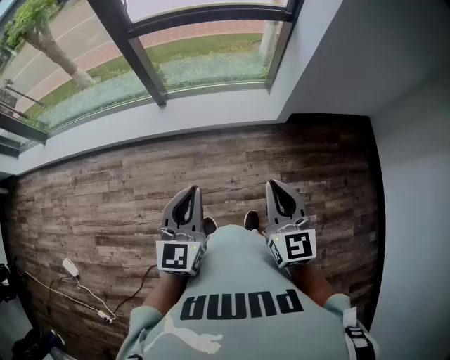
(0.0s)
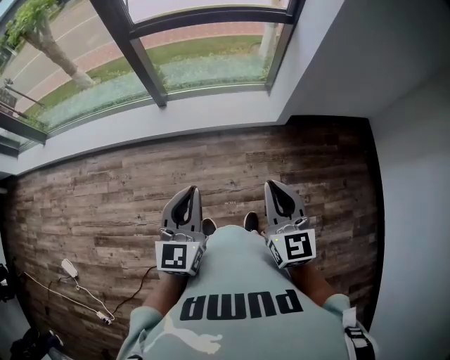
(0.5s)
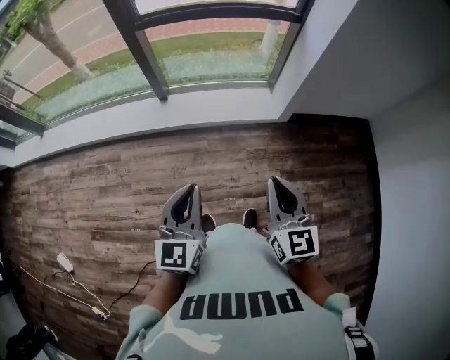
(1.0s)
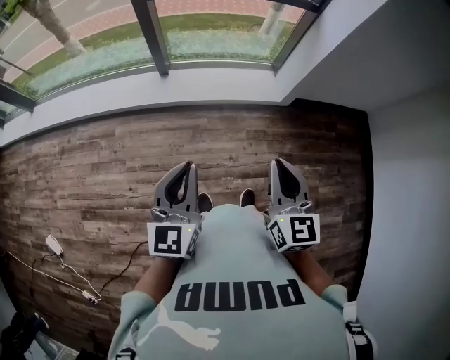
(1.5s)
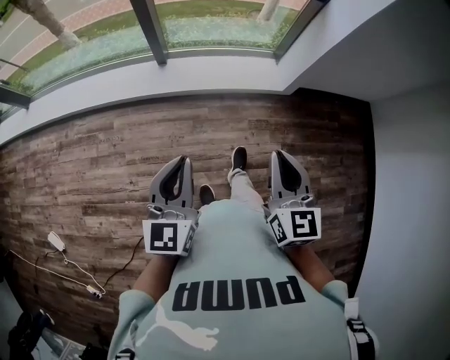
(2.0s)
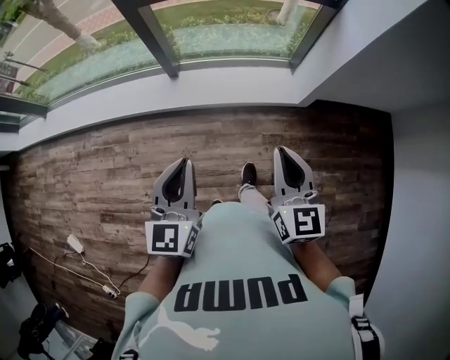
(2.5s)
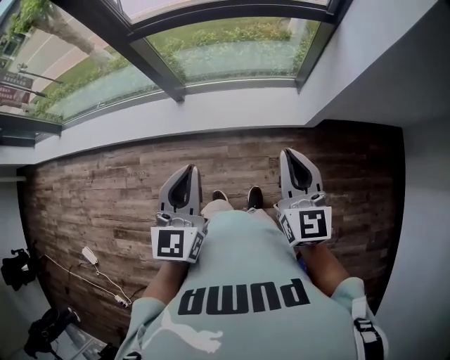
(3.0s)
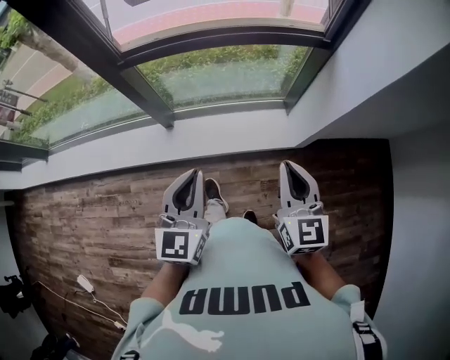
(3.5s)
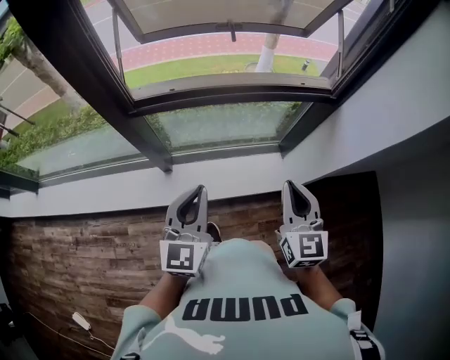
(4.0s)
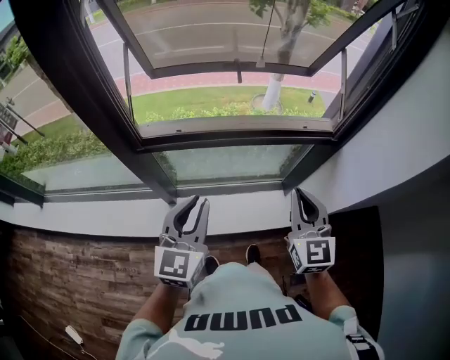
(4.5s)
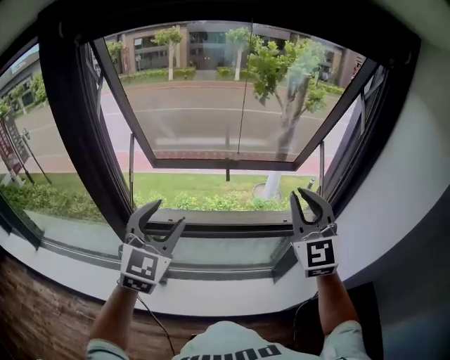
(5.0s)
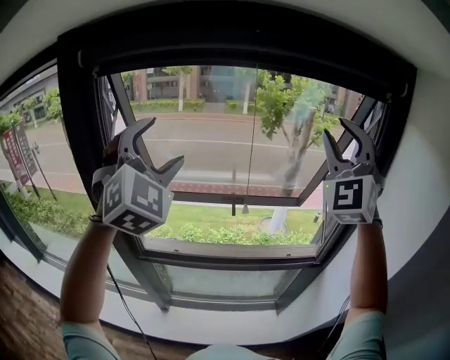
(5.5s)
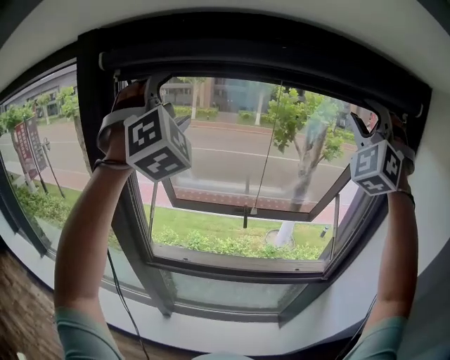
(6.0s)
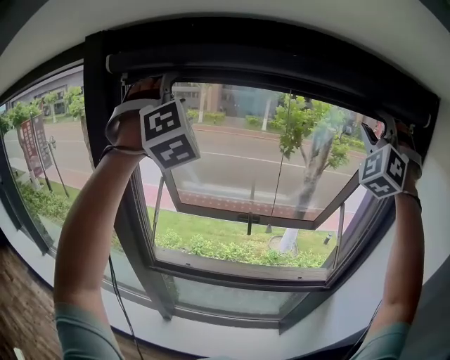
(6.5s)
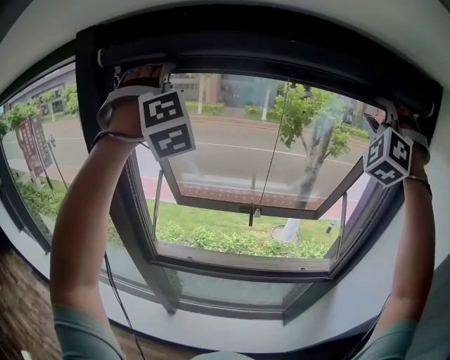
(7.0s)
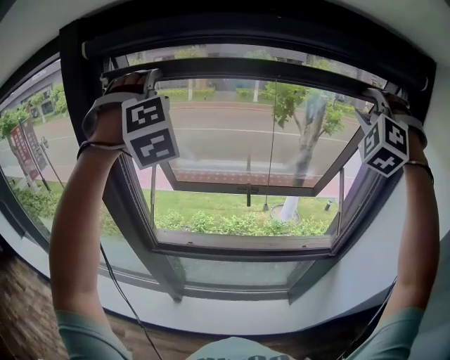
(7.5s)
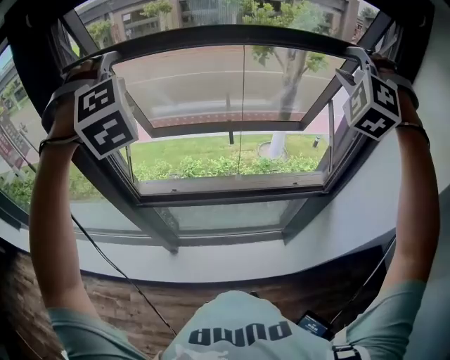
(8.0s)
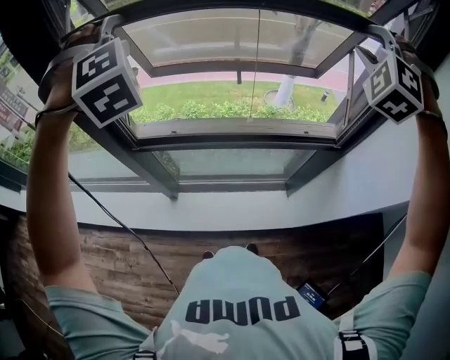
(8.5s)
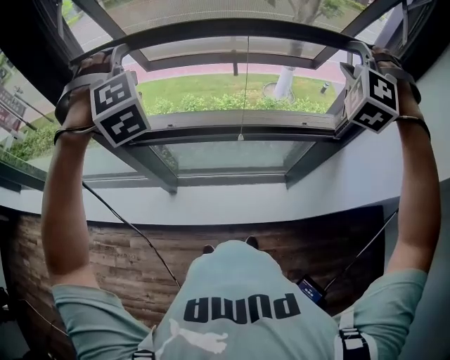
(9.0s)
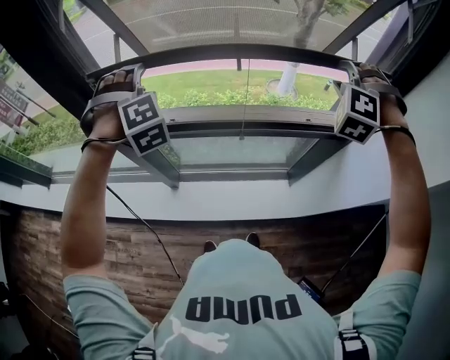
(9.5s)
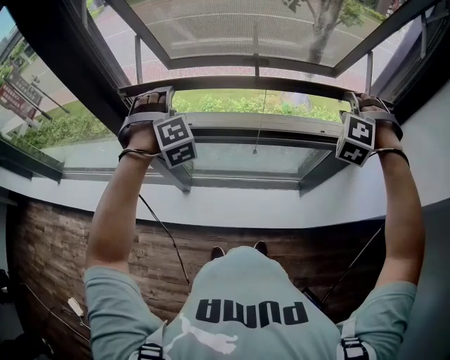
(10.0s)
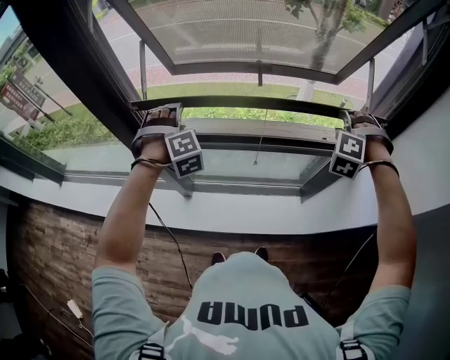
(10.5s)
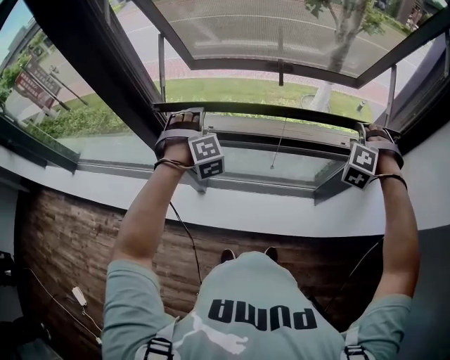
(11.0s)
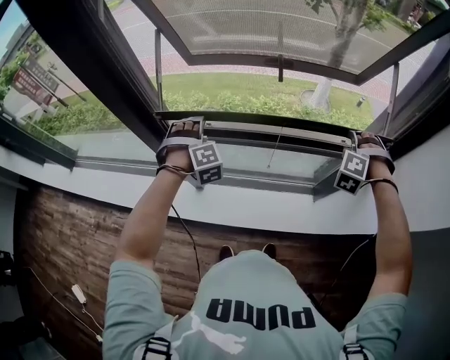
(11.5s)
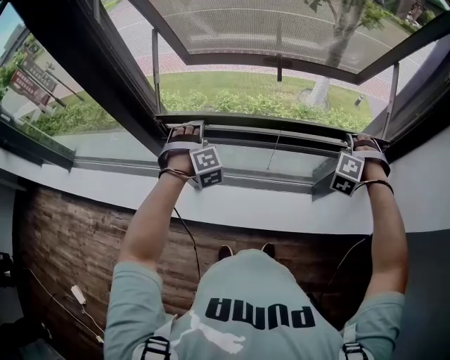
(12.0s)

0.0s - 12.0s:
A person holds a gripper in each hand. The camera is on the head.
0.0s - 2.0s: The grippers both shift to the left by about 10 cm.
2.0s - 4.0s: The two grippers travel together, forward, some 50 cm.
4.0s - 6.0s: The grippers both shift upward and forward by some 60 cm. The left gripper rolls clockwise, seen from behind, by roughly 70 degrees, and opens, while the right gripper rolls counterclockwise, seen from behind, by roughly 80 degrees, and opens.
6.0s - 8.0s: The grippers both shift downward by some 15 cm. The left gripper swivels some 40 degrees. Meanwhile the right gripper angles its fingers downward, by approximately 30 degrees.
8.0s - 10.0s: Both grippers travel together downward, about 30 cm. The right gripper rotates some 30 degrees.
10.0s - 12.0s: The two grippers go about 15 cm downward.

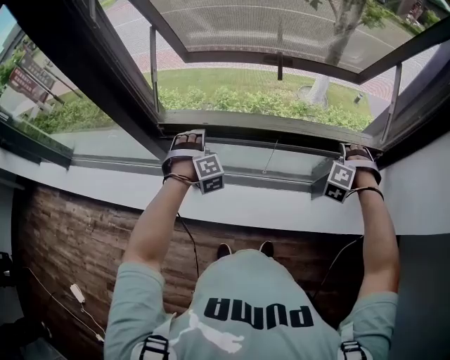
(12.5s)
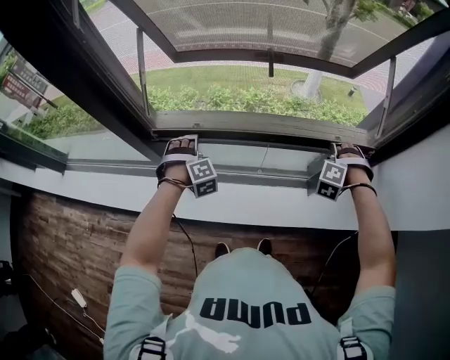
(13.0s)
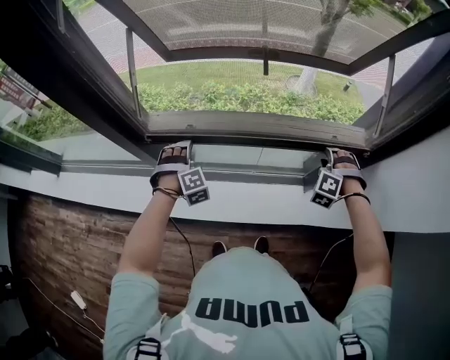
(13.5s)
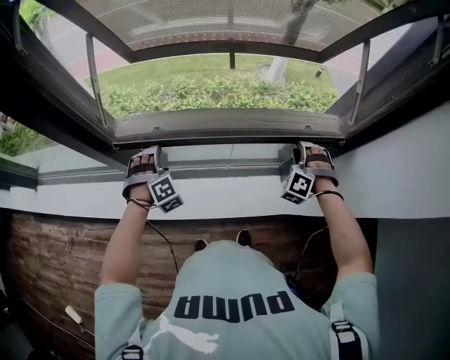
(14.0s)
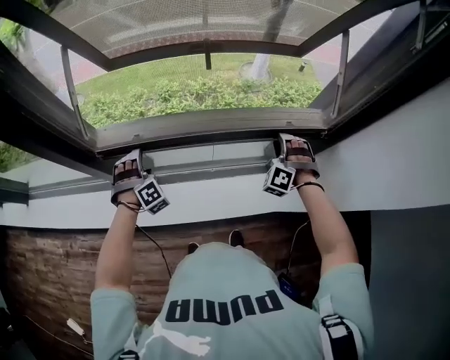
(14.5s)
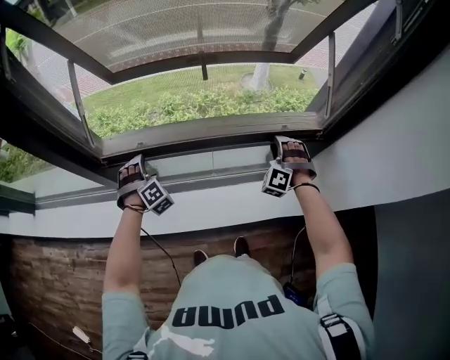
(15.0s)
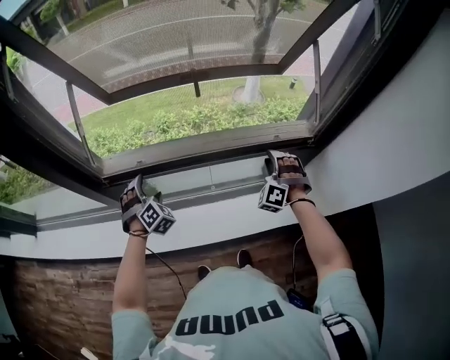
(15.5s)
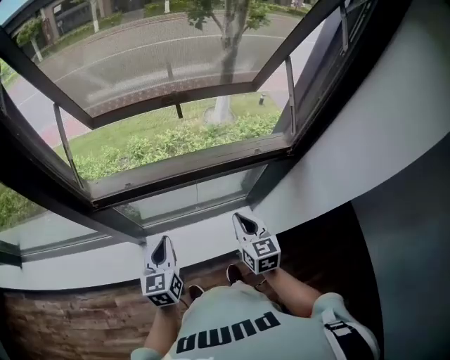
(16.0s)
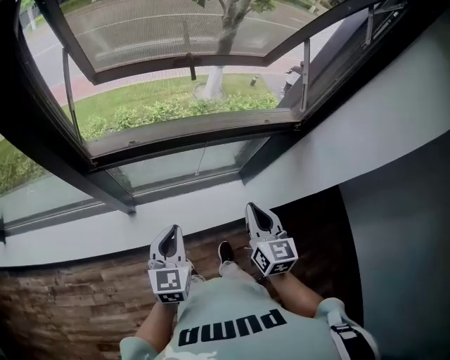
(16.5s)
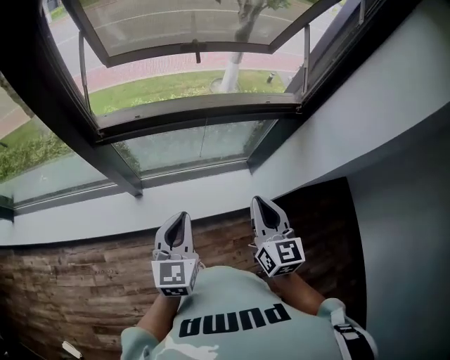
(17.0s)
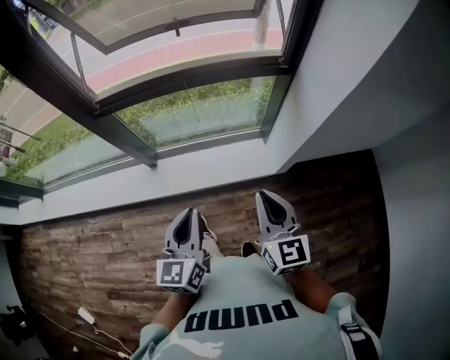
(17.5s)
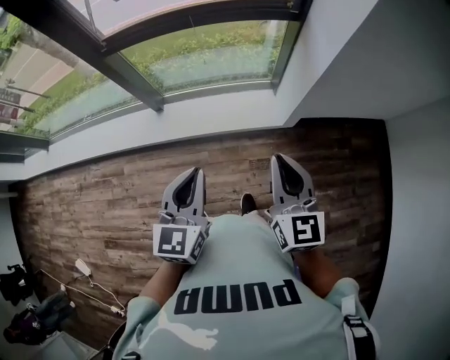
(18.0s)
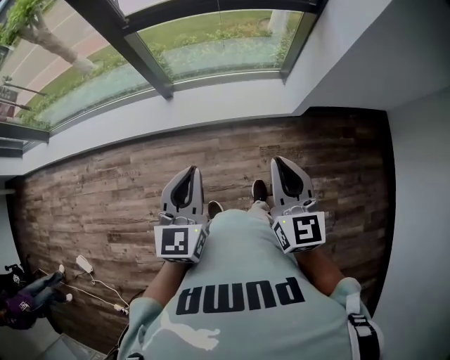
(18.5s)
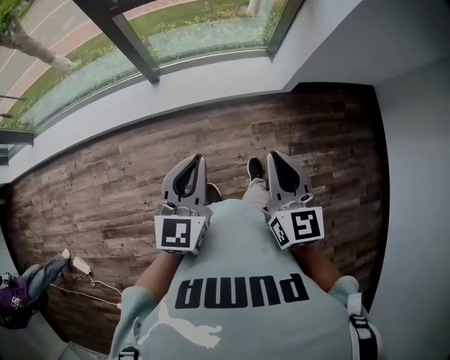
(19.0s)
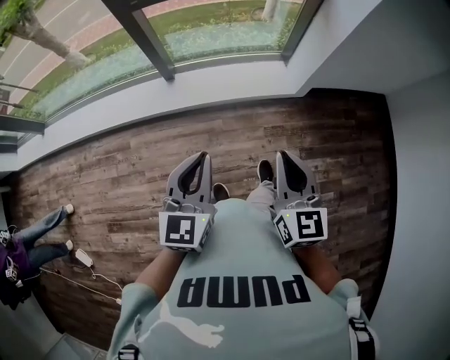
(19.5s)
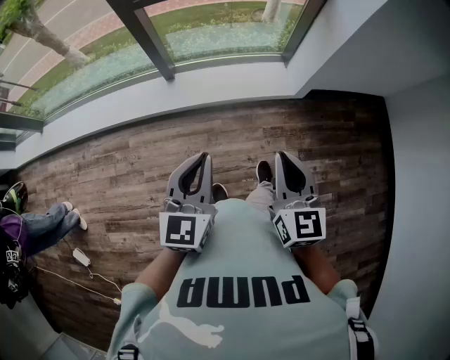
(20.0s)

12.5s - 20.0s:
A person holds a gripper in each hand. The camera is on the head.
12.5s - 14.5s: The right gripper moves downward, some 5 cm, and rotates about 20 degrees.
14.5s - 16.5s: The left gripper goes roughly 25 cm backward and upward, rotates around the line of its fingers by some 70 degrees, counterclockwise from behind, and closes its fingers; the right gripper shifts about 30 cm backward, to the left and upward, rotates around the line of its fingers by some 90 degrees, clockwise from behind, and closes up.
16.5s - 18.0s: The two grippers go some 40 cm backward and to the right.
18.0s - 20.0s: The left gripper heads to the left and backward, covering approximately 25 cm, while the right gripper moves backward and to the left, about 25 cm.

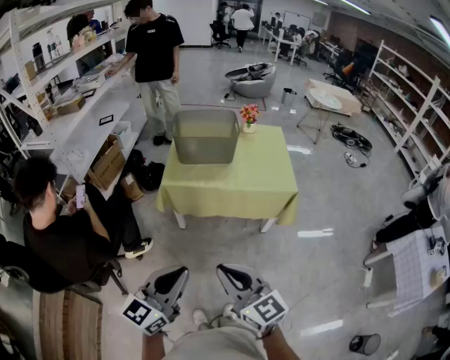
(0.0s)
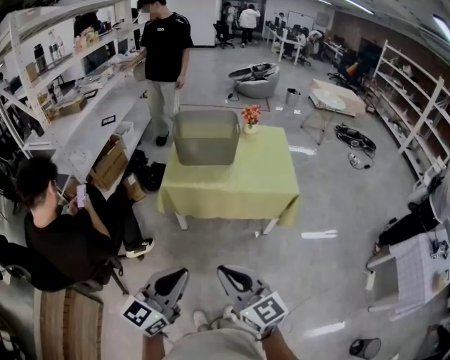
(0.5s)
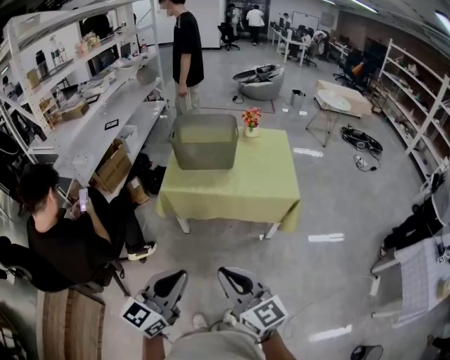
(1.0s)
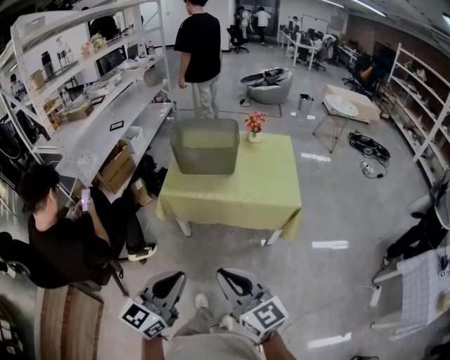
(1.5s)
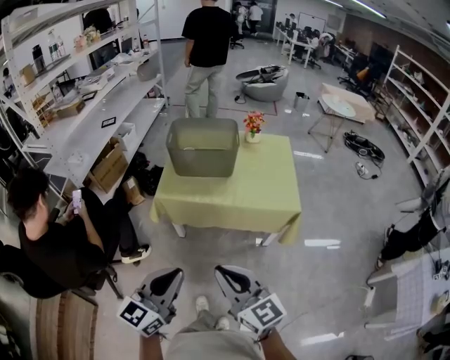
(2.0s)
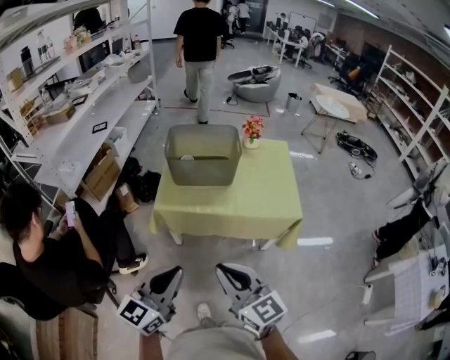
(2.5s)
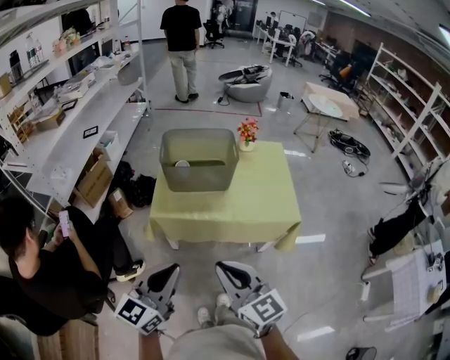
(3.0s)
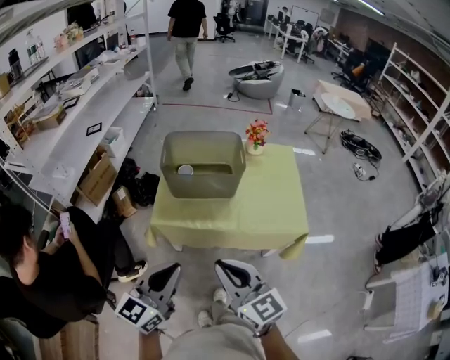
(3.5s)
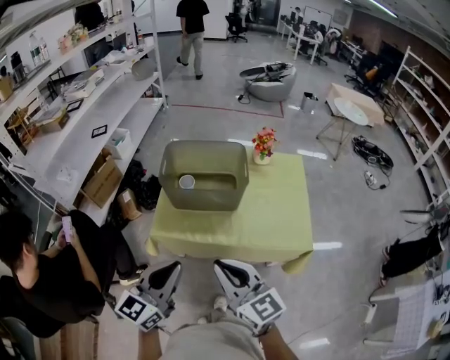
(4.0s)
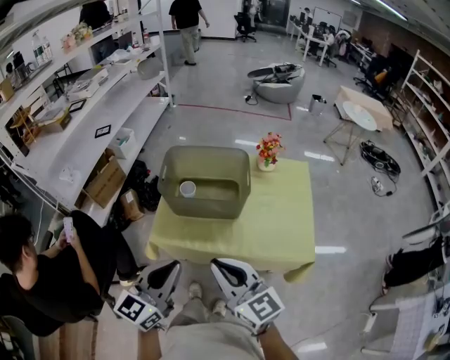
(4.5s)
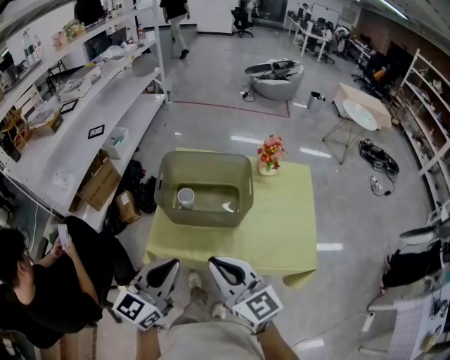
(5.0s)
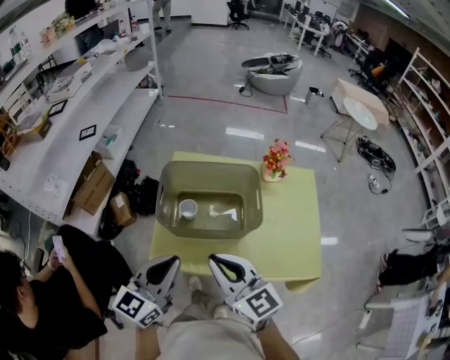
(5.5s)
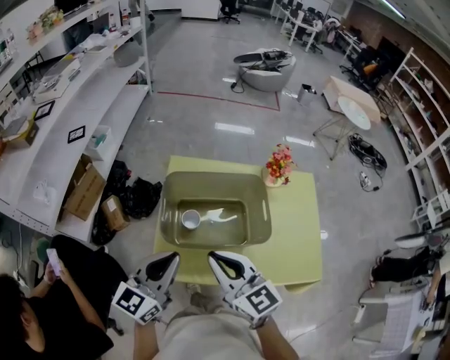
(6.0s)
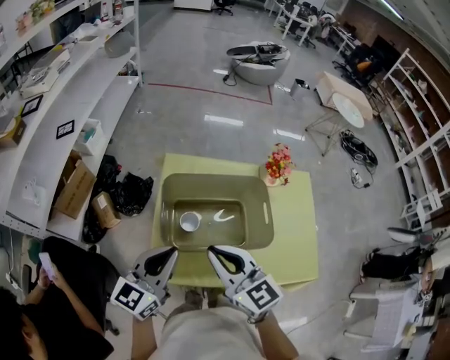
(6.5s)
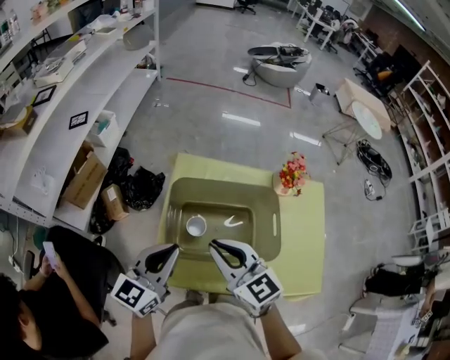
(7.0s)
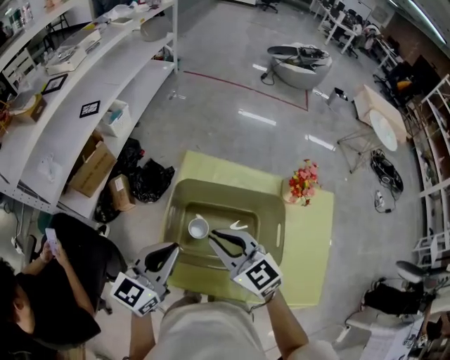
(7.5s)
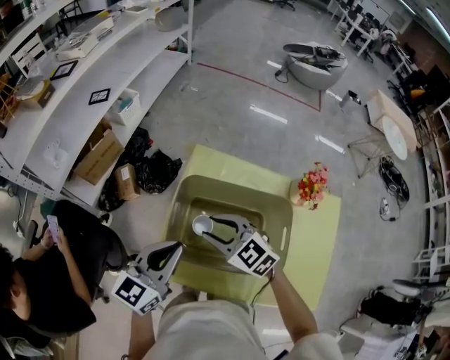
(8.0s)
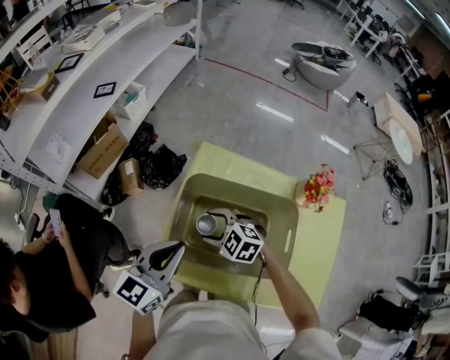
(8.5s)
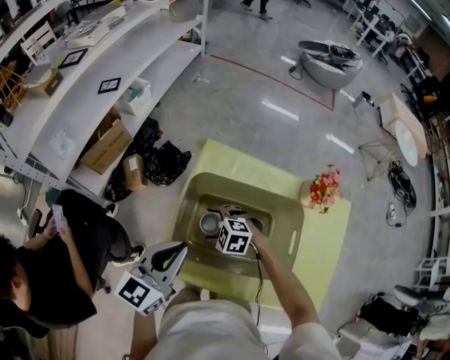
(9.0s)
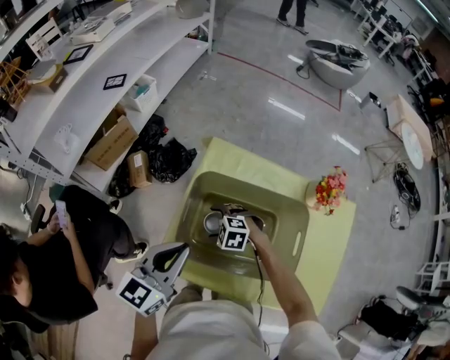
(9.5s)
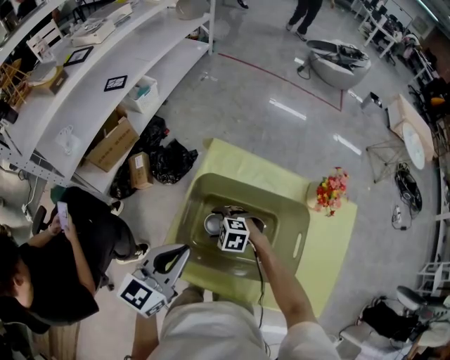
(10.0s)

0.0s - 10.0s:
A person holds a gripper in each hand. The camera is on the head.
0.0s - 2.0s: Both grippers travel together forward and to the right, about 15 cm.
2.0s - 4.0s: Both grippers travel together forward, about 30 cm.
4.0s - 6.0s: The grippers both shift forward by some 30 cm.
6.0s - 8.0s: The left gripper heads forward, covering about 10 cm. The right gripper travels forward and downward by about 20 cm, and turns by about 40 degrees.
8.0s - 10.0s: The right gripper goes some 20 cm downward, tips its fingers downward by about 30 degrees, and opens its fingers.
